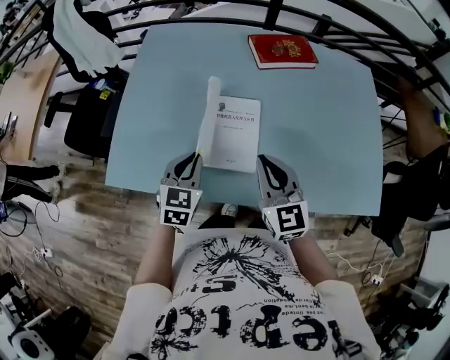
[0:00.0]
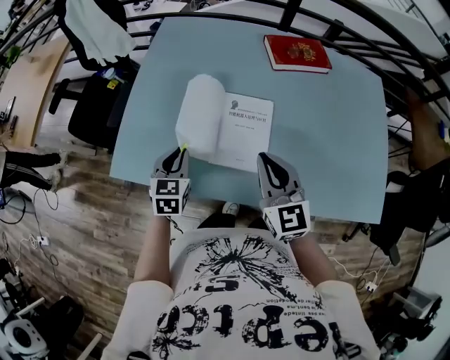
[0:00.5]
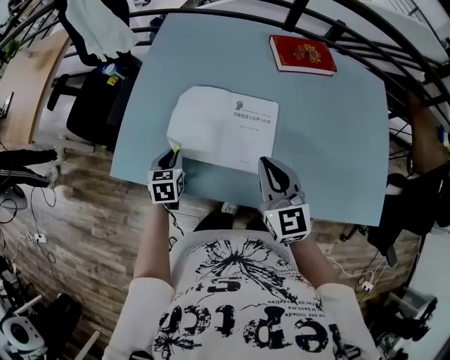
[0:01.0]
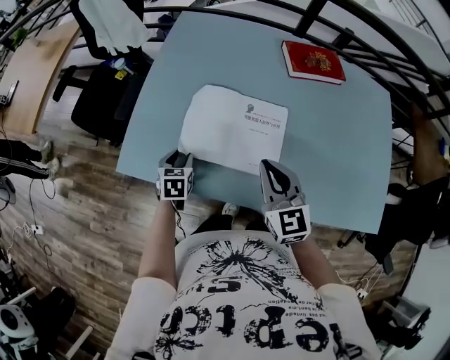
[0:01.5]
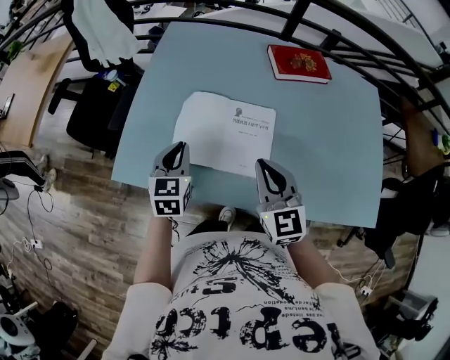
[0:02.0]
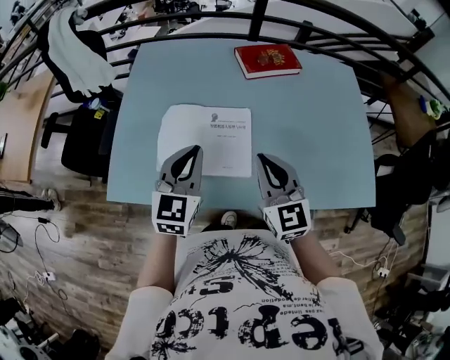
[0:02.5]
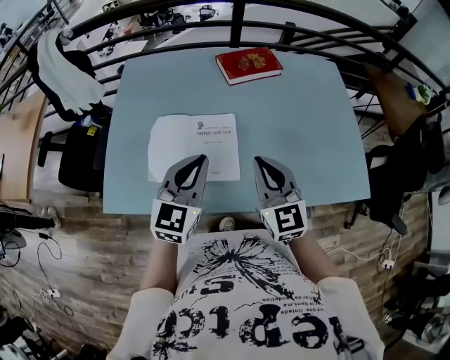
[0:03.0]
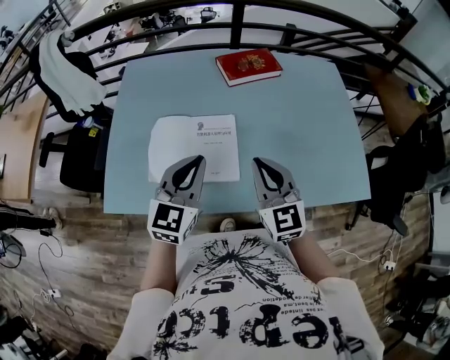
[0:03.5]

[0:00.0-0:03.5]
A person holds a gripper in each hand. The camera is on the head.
0:00.0 to 0:02.0: The left gripper is displaced to the left by roughly 10 cm, travels downward and back again, roughly 15 cm each way, and opens, then closes once more, while the right gripper travels to the left by some 5 cm.
0:02.0 to 0:03.5: The left gripper moves to the right and upward, roughly 20 cm, and swivels roughly 30 degrees; the right gripper moves to the right, some 10 cm.

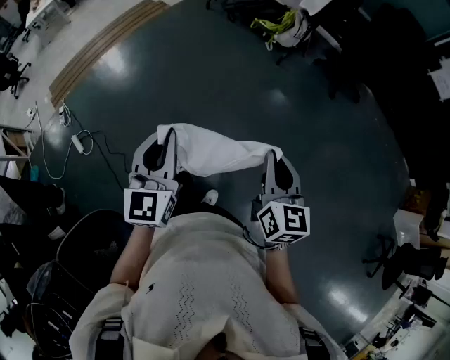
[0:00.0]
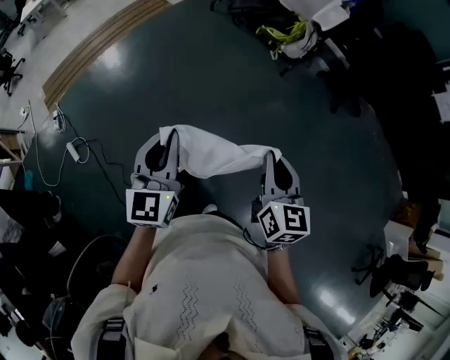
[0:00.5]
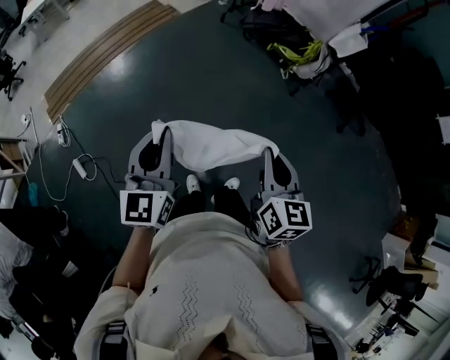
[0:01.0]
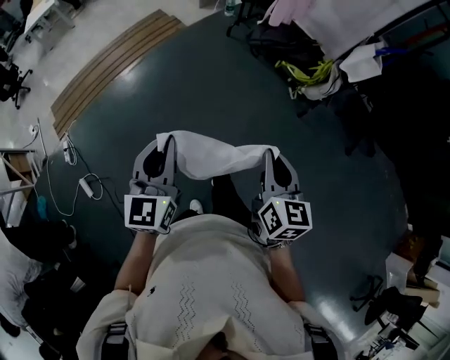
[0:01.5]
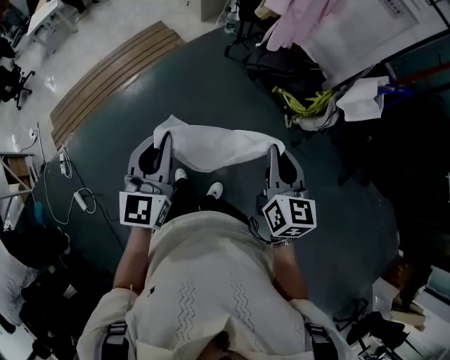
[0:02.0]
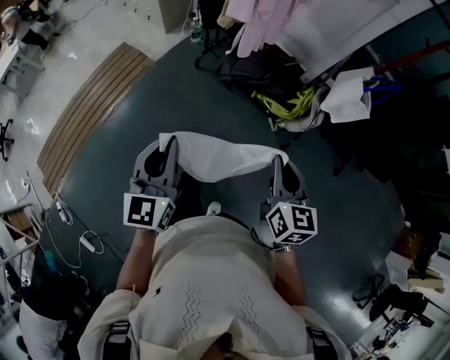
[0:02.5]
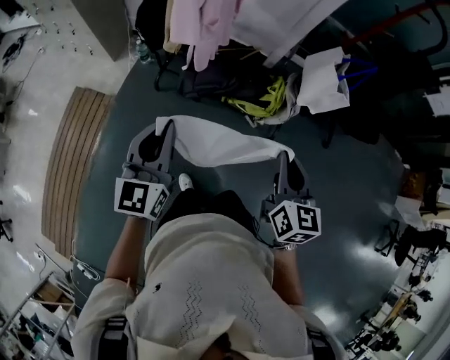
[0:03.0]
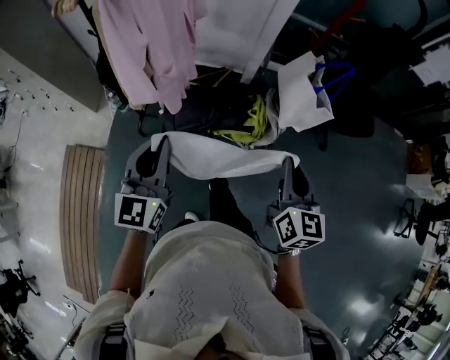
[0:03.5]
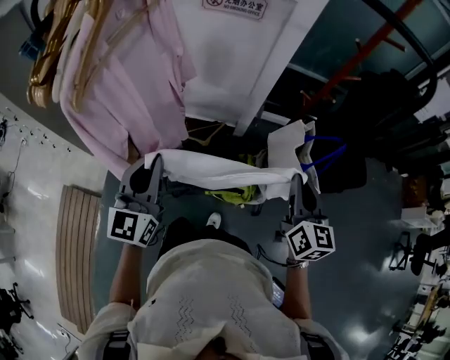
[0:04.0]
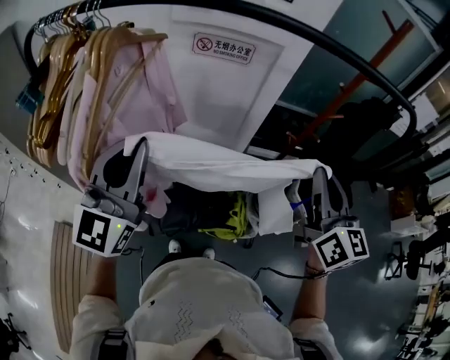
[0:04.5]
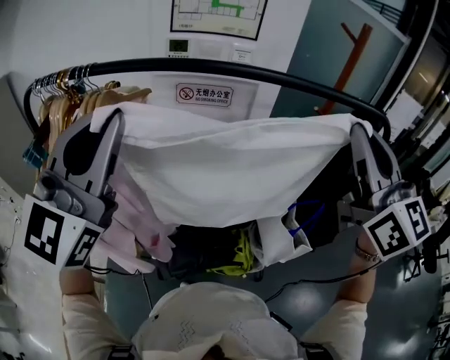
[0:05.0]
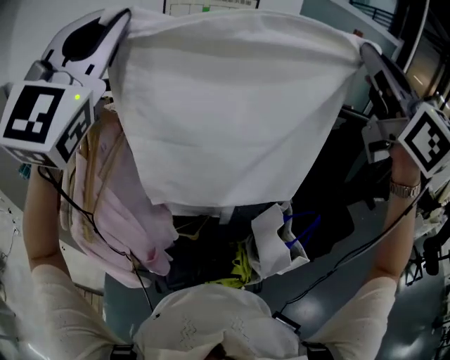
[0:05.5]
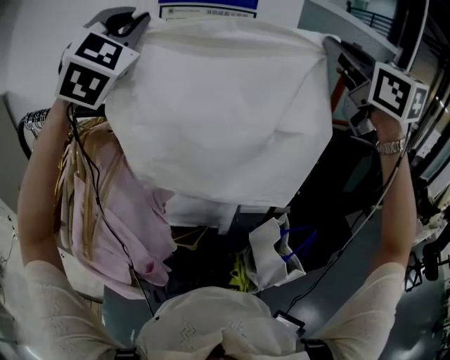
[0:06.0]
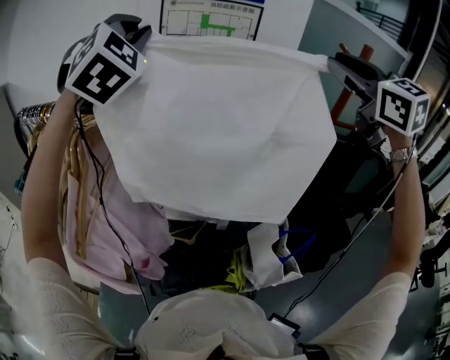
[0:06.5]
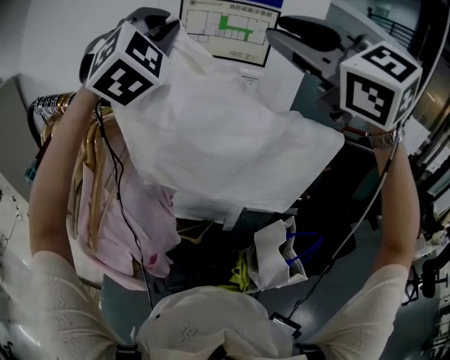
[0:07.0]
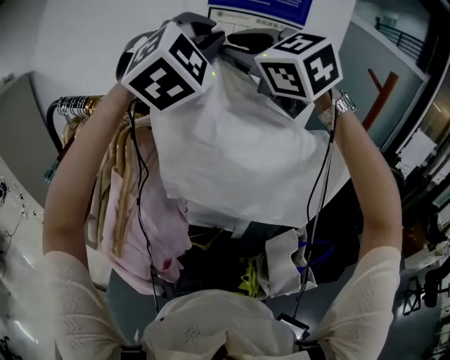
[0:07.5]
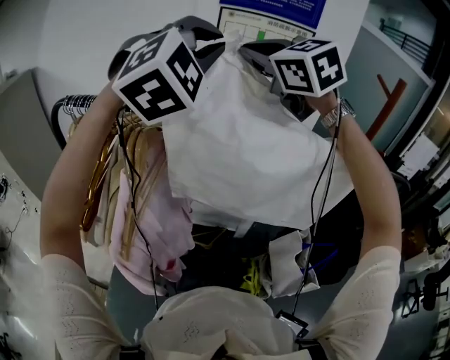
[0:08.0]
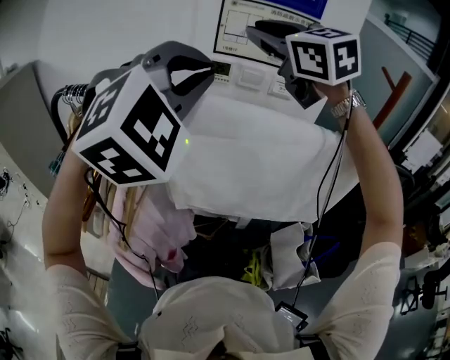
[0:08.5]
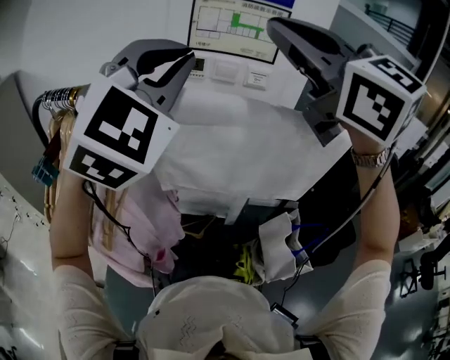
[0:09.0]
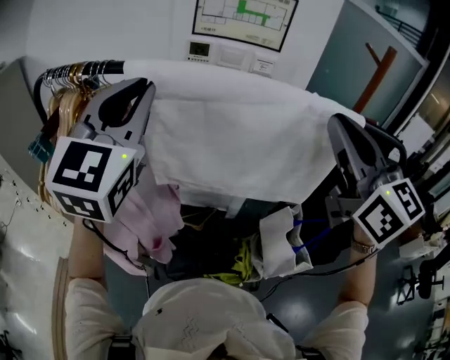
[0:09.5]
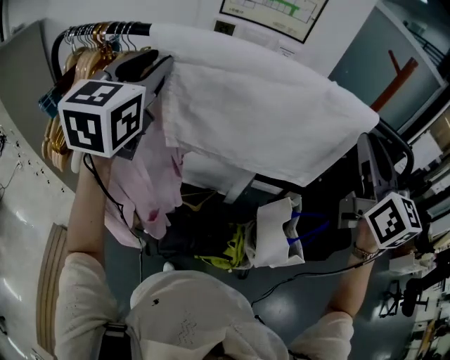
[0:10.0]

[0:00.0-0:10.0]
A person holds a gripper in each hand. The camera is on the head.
0:00.0 to 0:02.0: Both grippers are carried forward, some 80 cm.
0:02.0 to 0:04.0: The left gripper changes place by approximately 40 cm, and turns by about 40 degrees. Meanwhile the right gripper shifts by some 25 cm, and rotates roughly 40 degrees.
0:04.0 to 0:06.0: The two grippers go roughly 60 cm upward and forward. The right gripper rotates some 40 degrees, while the left gripper rotates around the line of its fingers by about 60 degrees, clockwise from behind.
0:06.0 to 0:08.0: The right gripper moves to the left and forward, some 30 cm, changes its angle by approximately 30 degrees, and opens, then closes once more.
0:08.0 to 0:10.0: The left gripper moves downward, to the left and backward, roughly 20 cm, rotates around the line of its fingers by about 60 degrees, counterclockwise from behind, and opens up. The right gripper moves to the right, backward and downward, about 35 cm, and swivels approximately 40 degrees.

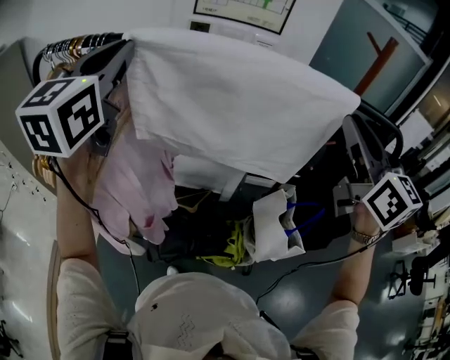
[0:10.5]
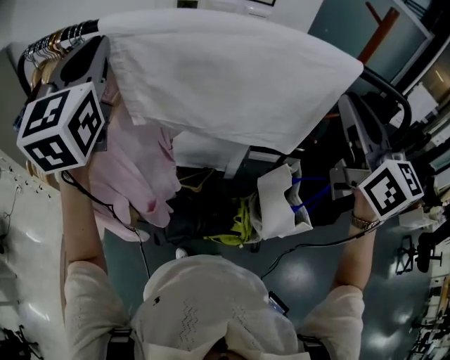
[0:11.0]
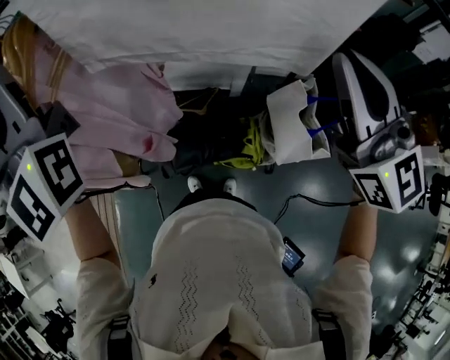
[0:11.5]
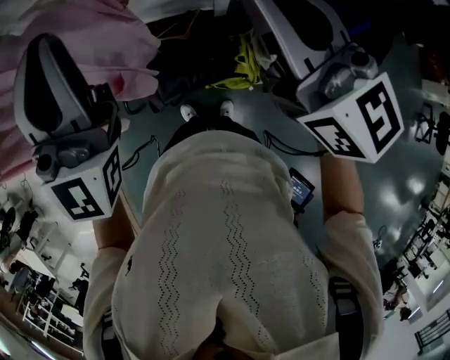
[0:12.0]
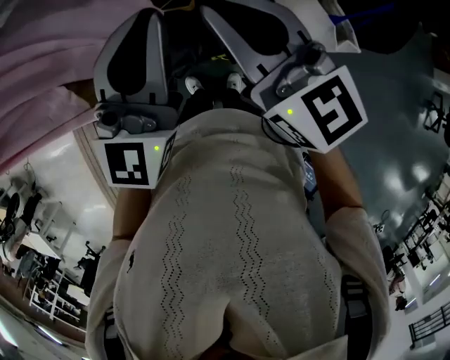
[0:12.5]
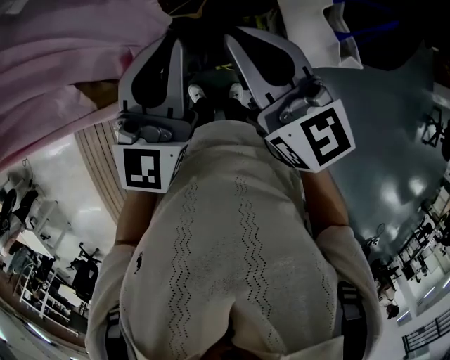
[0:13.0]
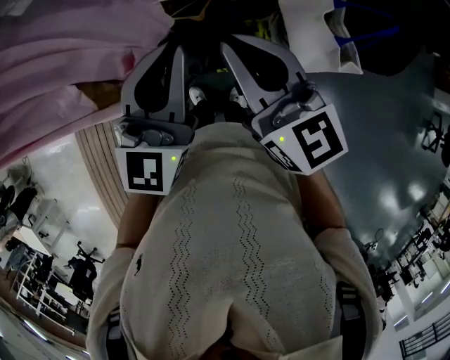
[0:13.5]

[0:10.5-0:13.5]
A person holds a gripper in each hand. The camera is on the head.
0:10.5 to 0:12.0: The right gripper goes approximately 25 cm downward and to the left, while the left gripper travels downward, backward and to the right by about 25 cm, and changes its angle by some 20 degrees.
0:12.0 to 0:13.5: The right gripper is displaced downward, backward and to the left by approximately 15 cm; the left gripper is displaced downward by about 15 cm, and changes its angle by approximately 30 degrees.

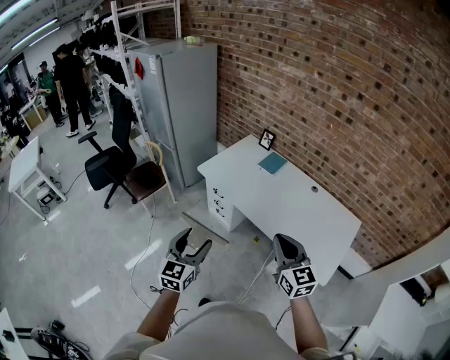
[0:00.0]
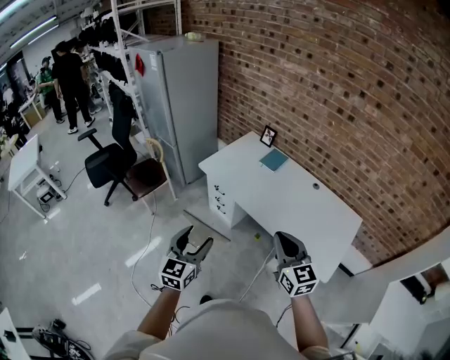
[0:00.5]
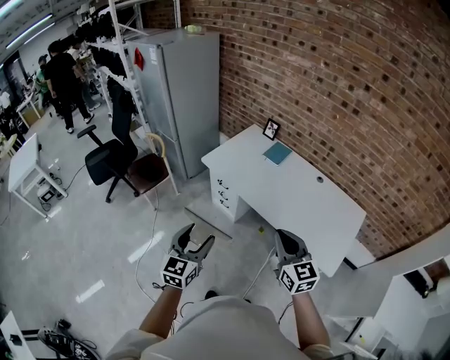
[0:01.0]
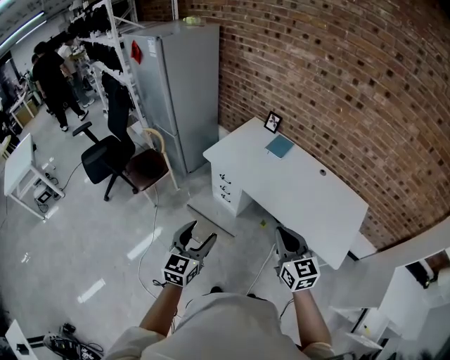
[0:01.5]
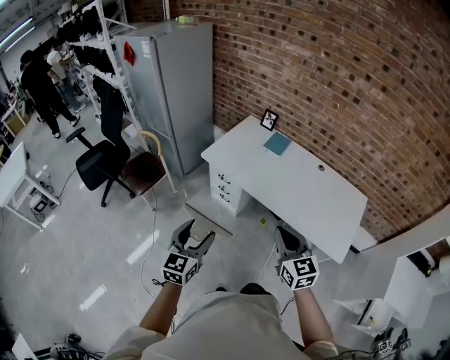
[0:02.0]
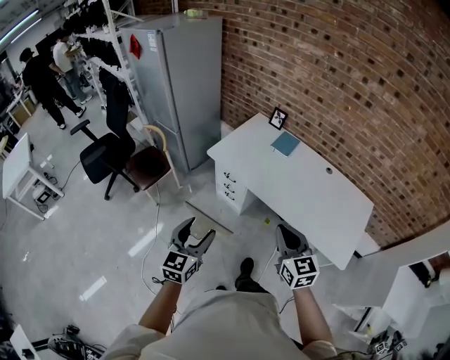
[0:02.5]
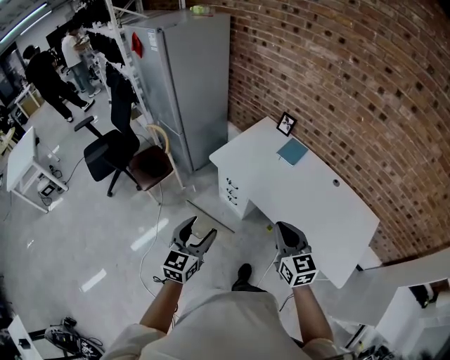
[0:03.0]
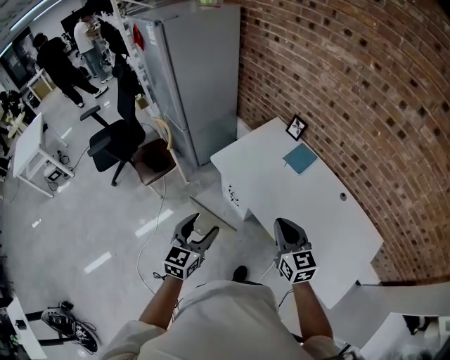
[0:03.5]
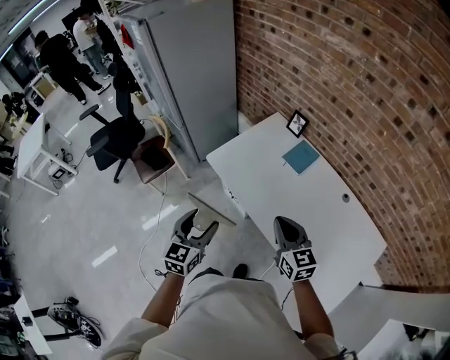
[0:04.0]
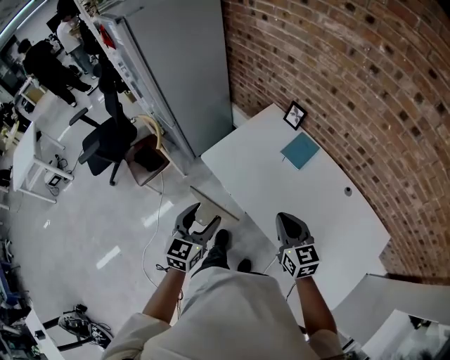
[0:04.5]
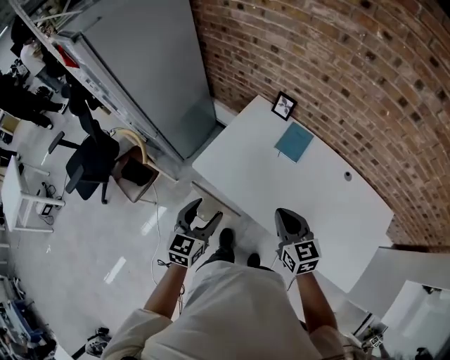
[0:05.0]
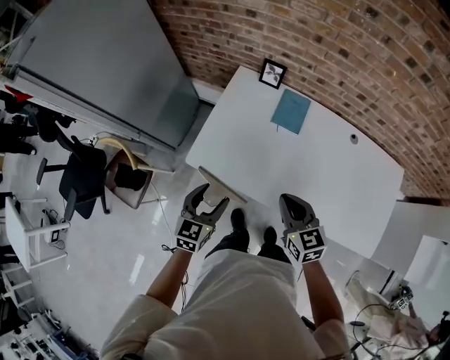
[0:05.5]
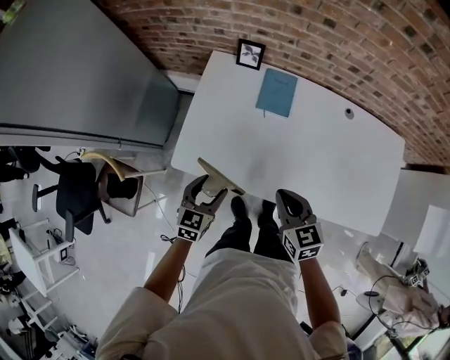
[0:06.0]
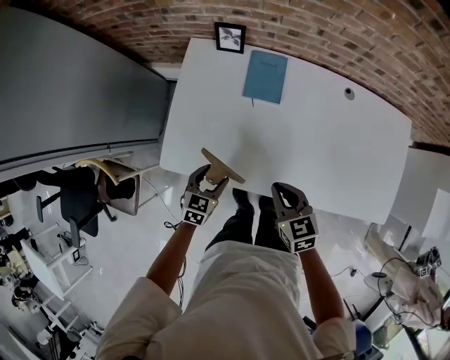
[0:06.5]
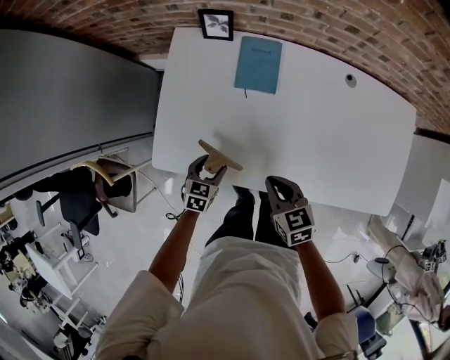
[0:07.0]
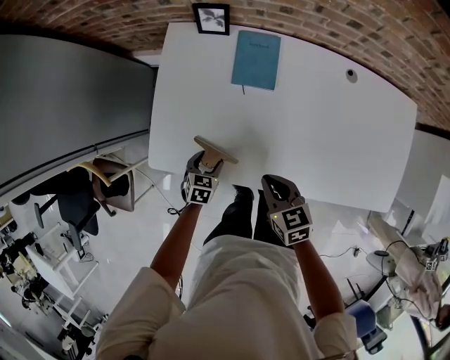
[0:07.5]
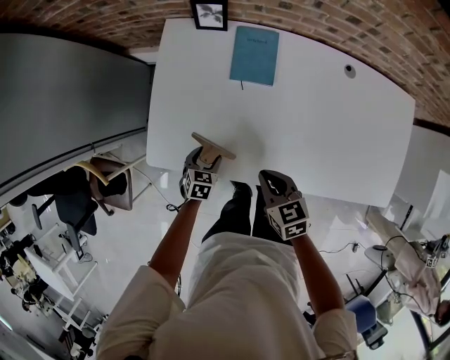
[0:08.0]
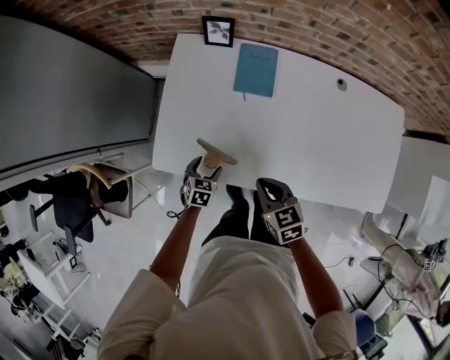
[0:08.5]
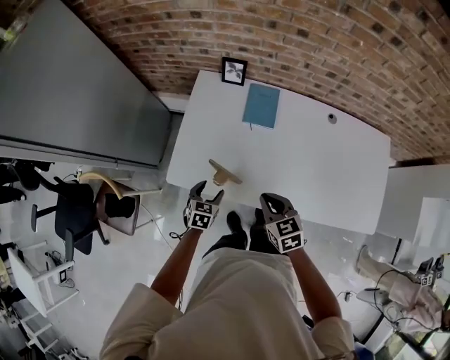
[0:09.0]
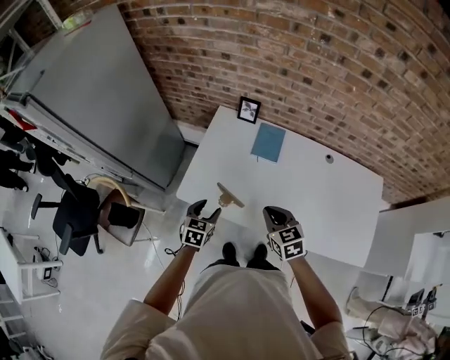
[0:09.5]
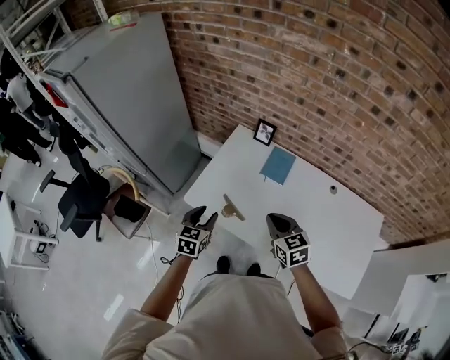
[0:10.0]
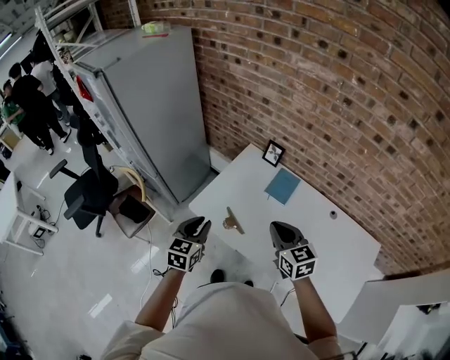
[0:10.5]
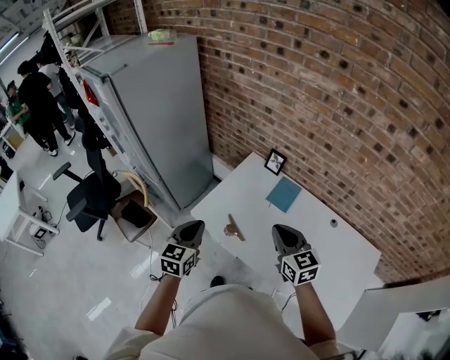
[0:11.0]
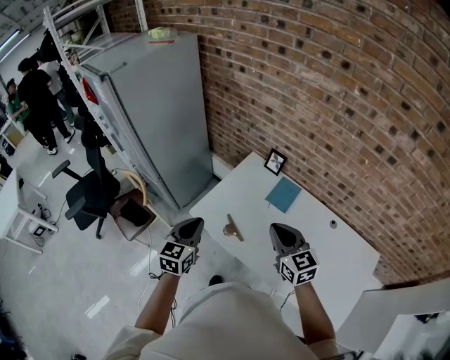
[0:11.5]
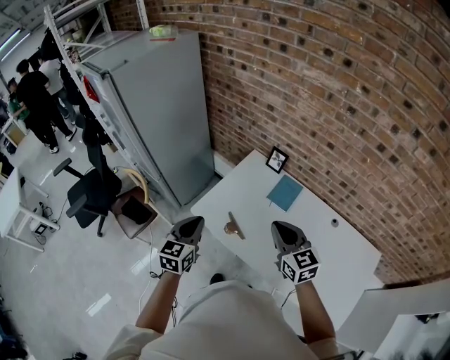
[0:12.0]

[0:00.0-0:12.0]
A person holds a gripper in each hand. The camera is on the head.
0:00.0 to 0:02.0: Both grippers travel together to the left, some 10 cm.
0:02.0 to 0:04.0: The left gripper shifts some 25 cm forward and to the right. Meanwhile the right gripper moves forward, some 30 cm.
0:04.0 to 0:06.0: The left gripper changes place by some 35 cm, and swivels approximately 40 degrees. Meanwhile the right gripper shifts by roughly 20 cm, and changes its angle by roughly 30 degrees.
0:06.0 to 0:08.0: The left gripper goes some 25 cm downward, and turns by about 30 degrees. Meanwhile the right gripper travels downward by about 15 cm.
0:08.0 to 0:10.0: The left gripper is displaced upward by roughly 35 cm, and rotates roughly 40 degrees; the right gripper moves upward, roughly 20 cm, and turns by roughly 30 degrees.
0:10.0 to 0:12.0: Both grippers move upward, roughly 10 cm. The left gripper closes.
